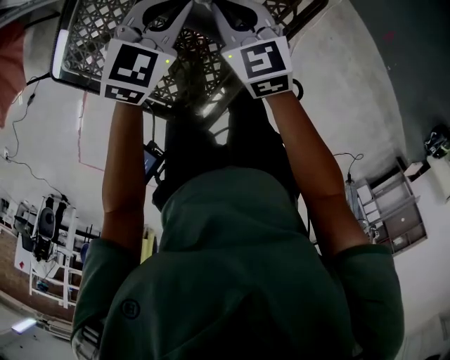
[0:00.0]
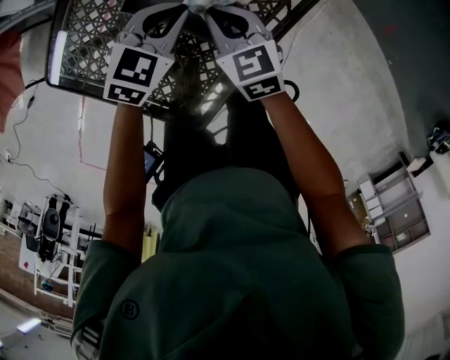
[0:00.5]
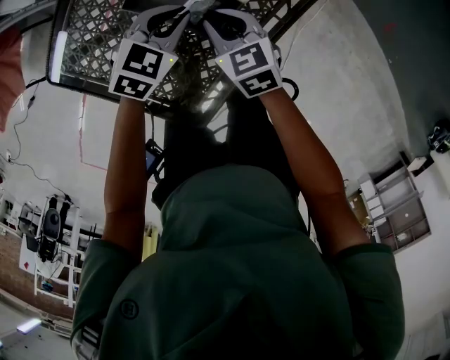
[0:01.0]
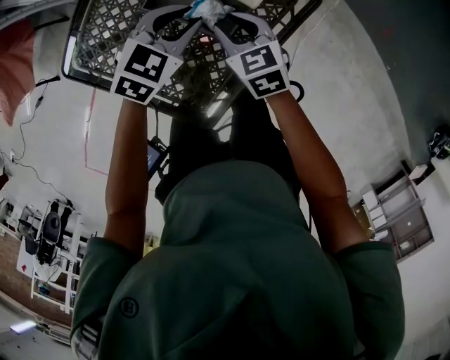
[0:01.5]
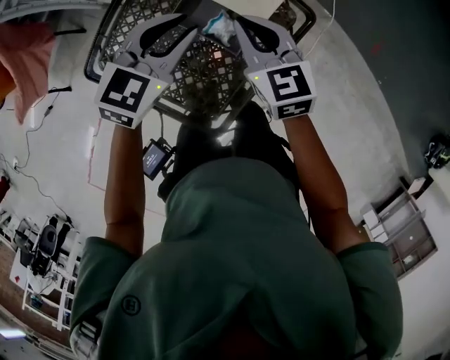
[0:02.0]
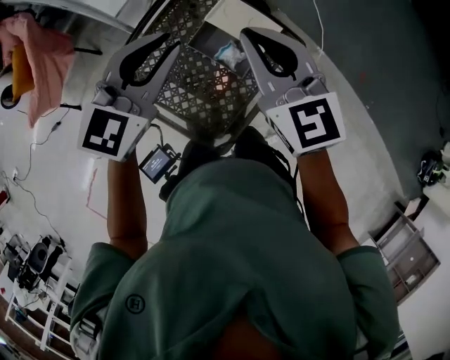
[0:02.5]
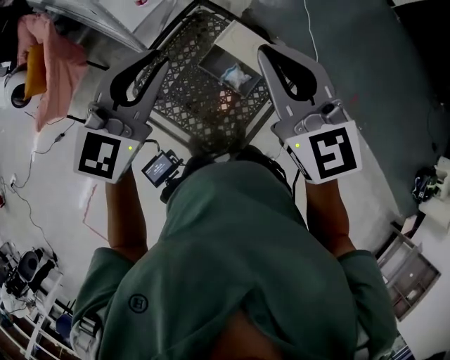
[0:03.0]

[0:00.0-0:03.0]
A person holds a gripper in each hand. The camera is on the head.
0:00.0 to 0:01.5: The right gripper travels backward by roughly 5 cm, and opens. Meanwhile the left gripper opens its fingers.
0:01.5 to 0:03.0: The grippers both shift upward by roughly 50 cm. The left gripper points its fingers approximately 40 degrees further upward; the right gripper angles its fingers upward, by approximately 40 degrees, and closes up.

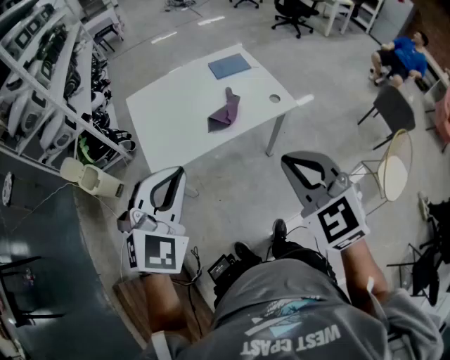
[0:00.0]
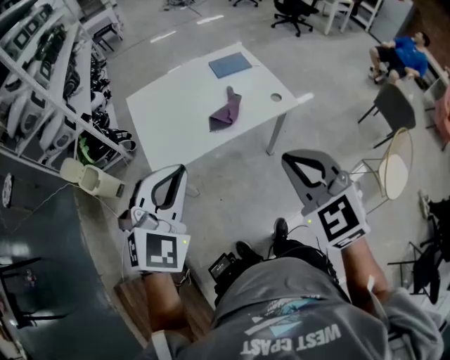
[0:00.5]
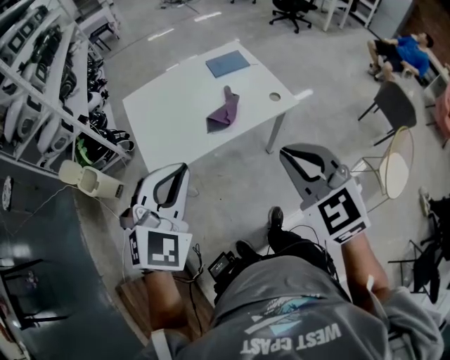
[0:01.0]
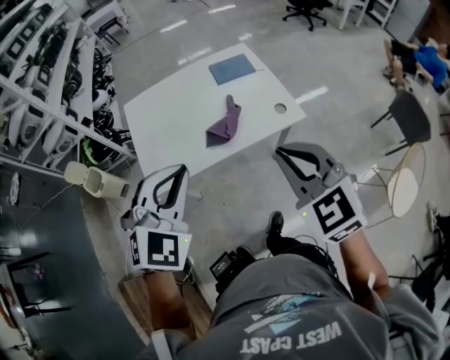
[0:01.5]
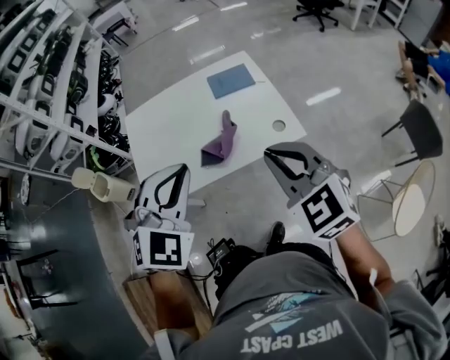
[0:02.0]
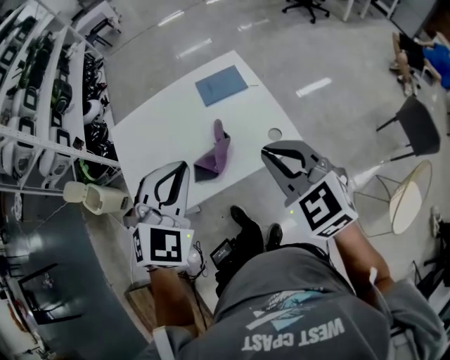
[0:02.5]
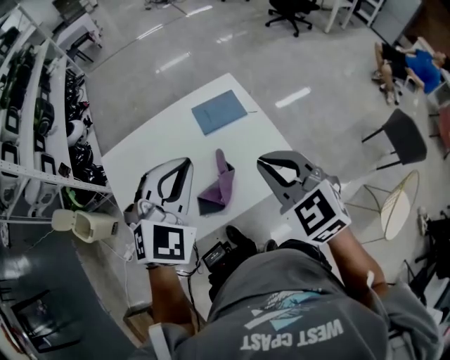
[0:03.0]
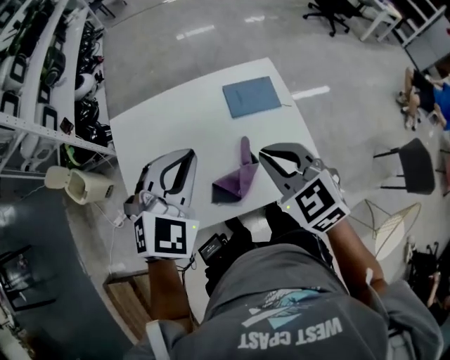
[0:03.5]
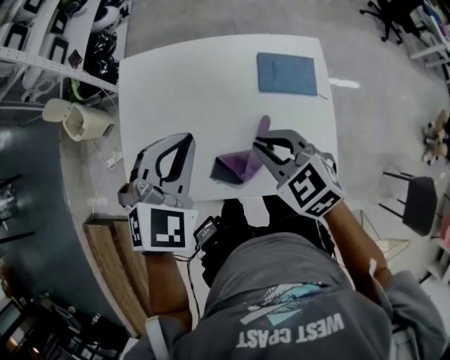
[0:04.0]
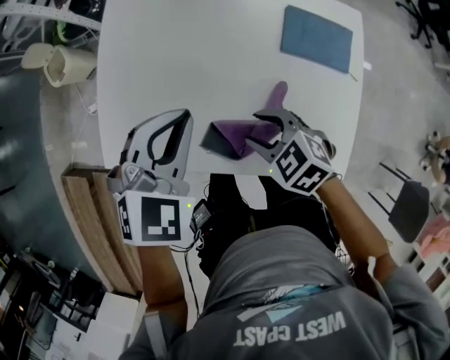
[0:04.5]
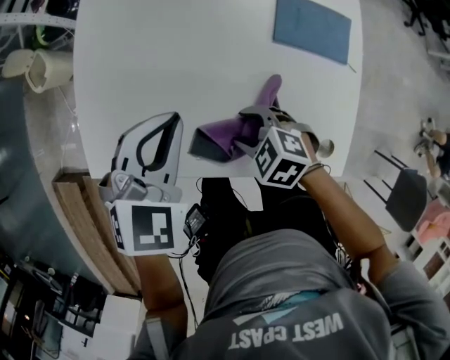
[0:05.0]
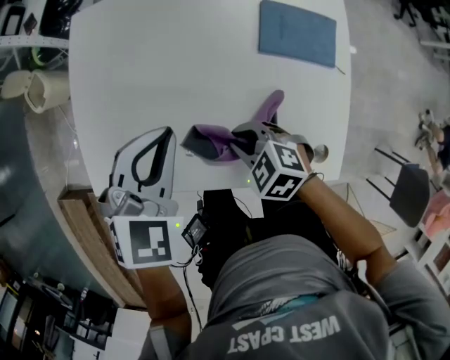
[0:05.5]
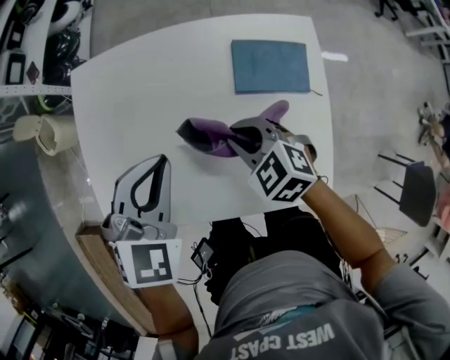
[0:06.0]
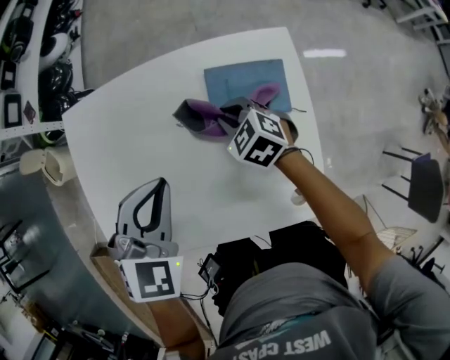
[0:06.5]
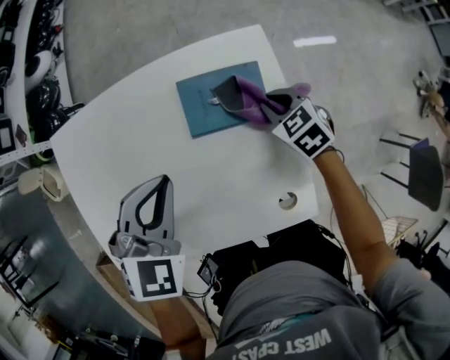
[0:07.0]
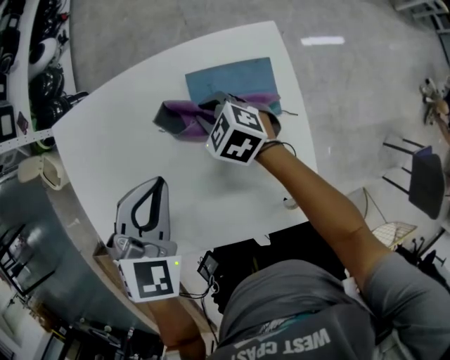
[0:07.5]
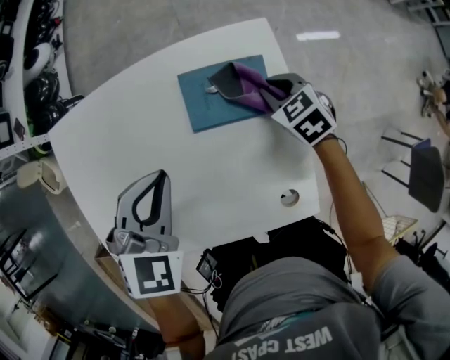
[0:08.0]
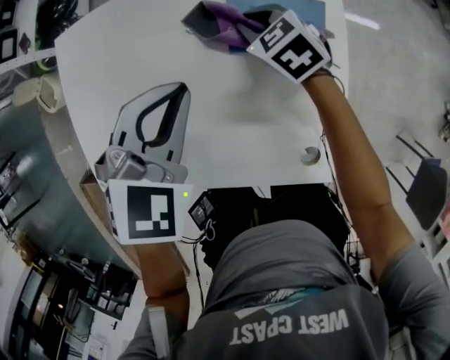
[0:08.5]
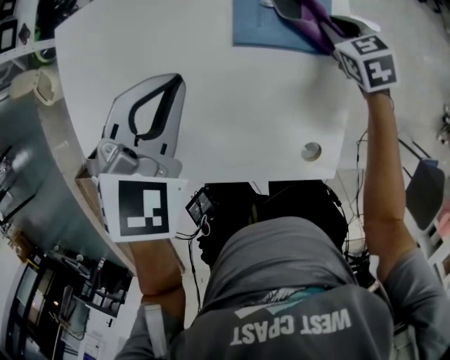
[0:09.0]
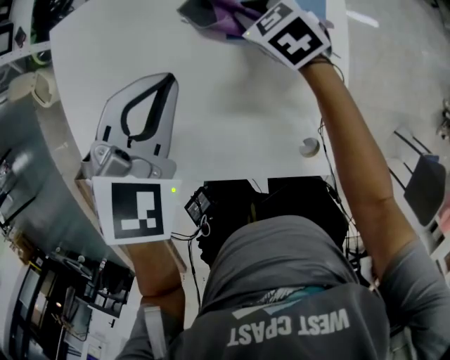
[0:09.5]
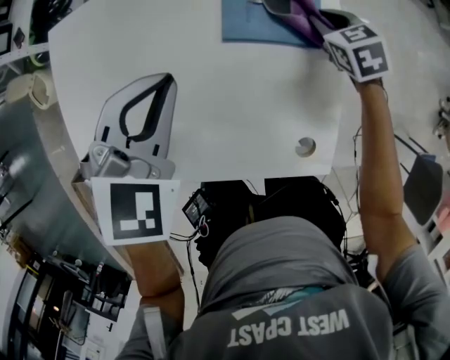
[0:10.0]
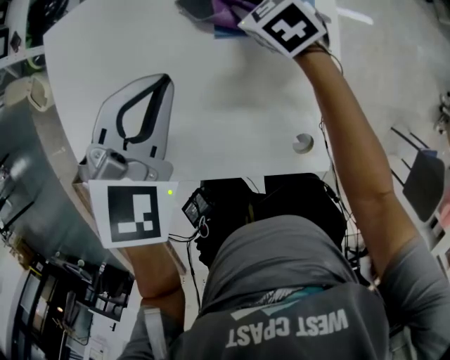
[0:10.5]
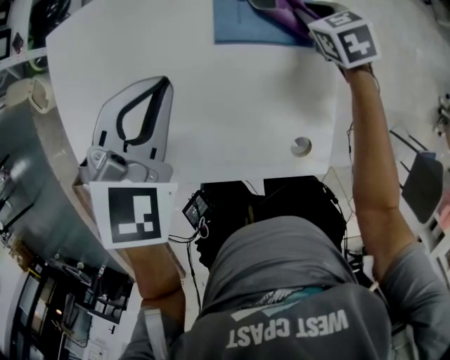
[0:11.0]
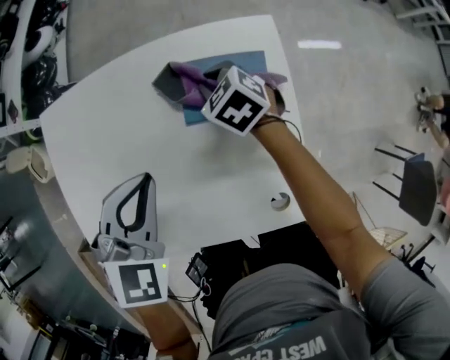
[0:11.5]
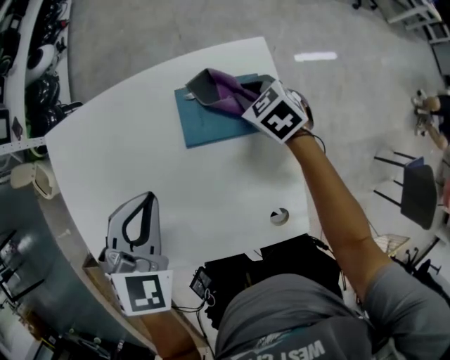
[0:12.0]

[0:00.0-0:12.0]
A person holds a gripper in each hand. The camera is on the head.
0:00.0 to 0:02.0: Both grippers travel together forward and to the right, approximately 25 cm.
0:02.0 to 0:04.0: The left gripper ends up approximately 30 cm from where it was, and rotates roughly 20 degrees; the right gripper moves roughly 35 cm, and swivels some 30 degrees.
0:04.0 to 0:06.0: Both grippers move downward and forward, approximately 15 cm. The right gripper opens and closes again.
0:06.0 to 0:08.0: The right gripper swings left and right, about 25 cm each way, with 2 reversals, and changes its angle by about 30 degrees. Meanwhile the left gripper goes some 15 cm to the right and forward.
0:08.0 to 0:10.0: The right gripper goes left and right, approximately 15 cm each way, reversing 3 times.
0:10.0 to 0:12.0: The right gripper moves left and right over approximately 15 cm, changing direction 3 times.

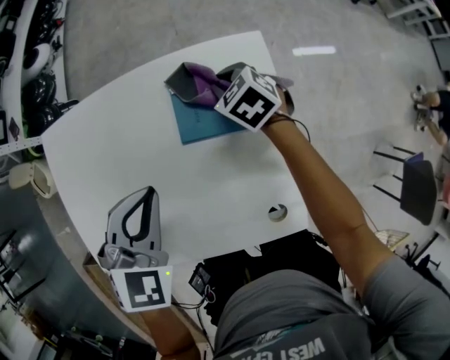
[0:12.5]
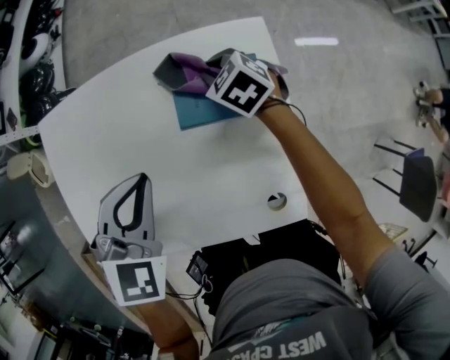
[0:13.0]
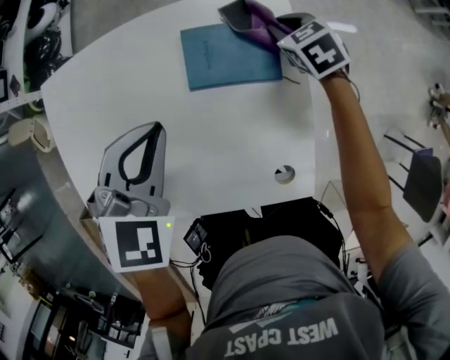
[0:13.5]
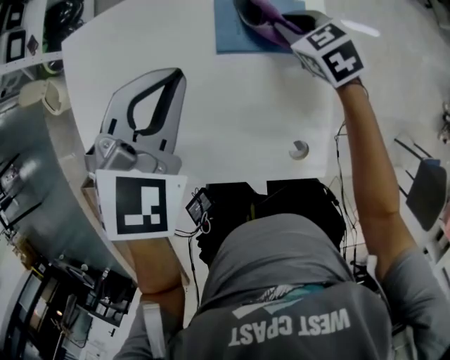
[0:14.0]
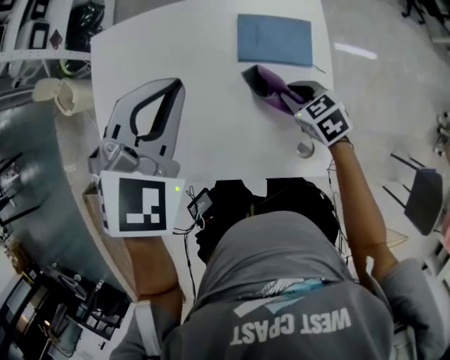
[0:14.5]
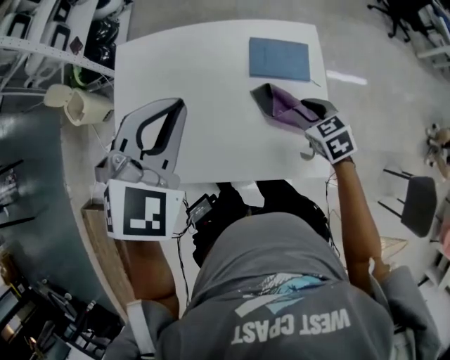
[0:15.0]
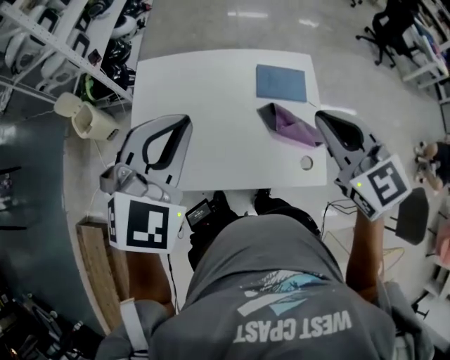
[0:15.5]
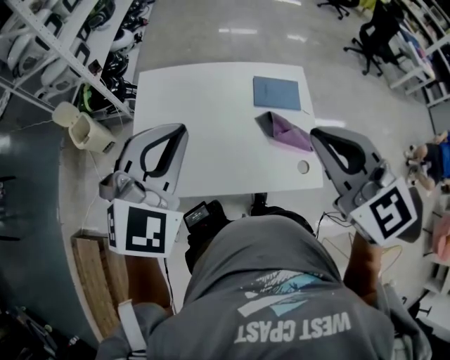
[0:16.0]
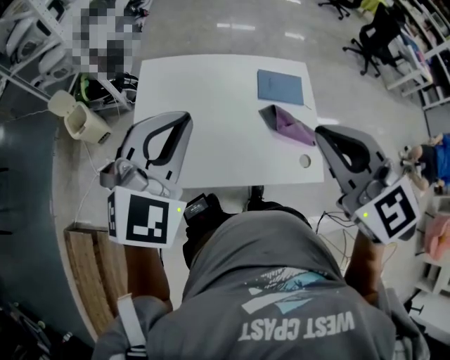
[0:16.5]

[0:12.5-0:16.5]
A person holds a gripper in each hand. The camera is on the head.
0:12.5 to 0:14.5: The right gripper shifts some 20 cm backward, while the left gripper travels upward by approximately 10 cm.
0:14.5 to 0:16.5: The right gripper goes about 50 cm upward and backward, and points its fingers roughly 30 degrees further upward. The left gripper is displaced backward, to the left and upward by about 30 cm, and changes its angle by roughly 20 degrees.

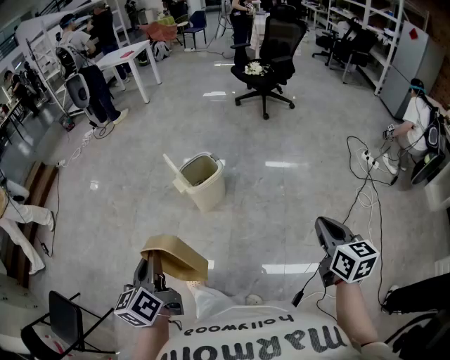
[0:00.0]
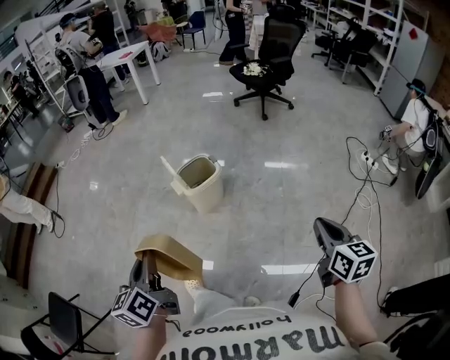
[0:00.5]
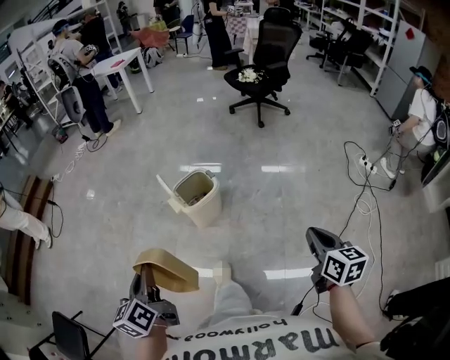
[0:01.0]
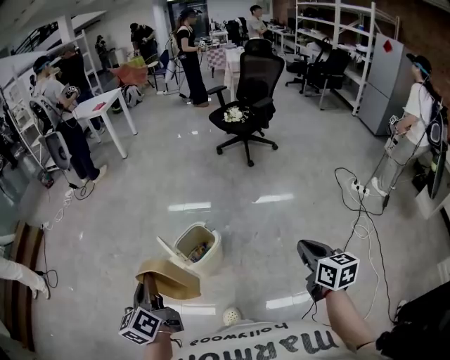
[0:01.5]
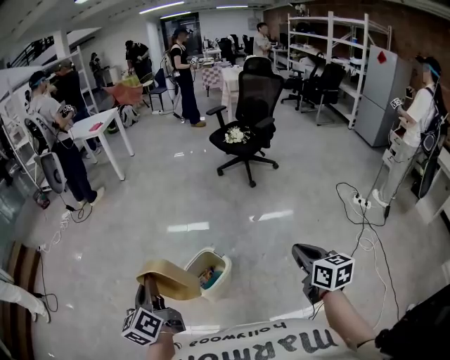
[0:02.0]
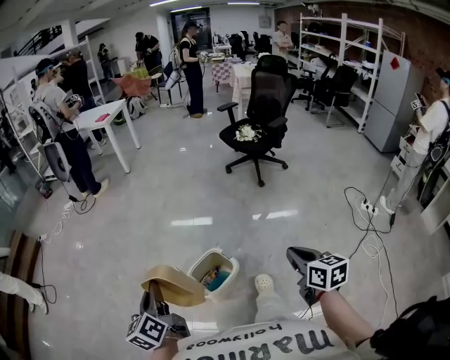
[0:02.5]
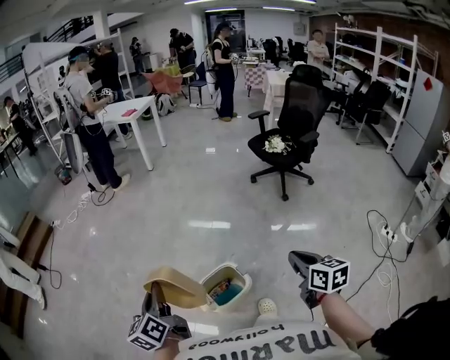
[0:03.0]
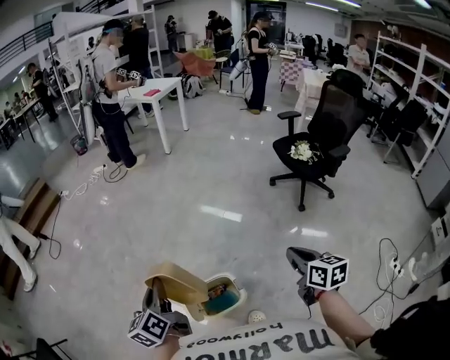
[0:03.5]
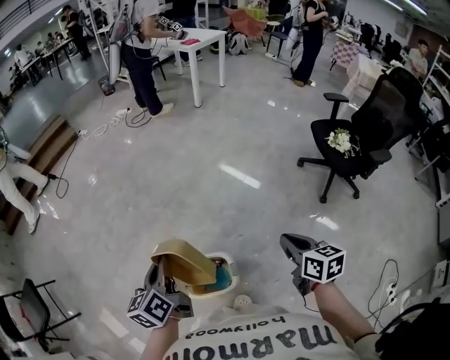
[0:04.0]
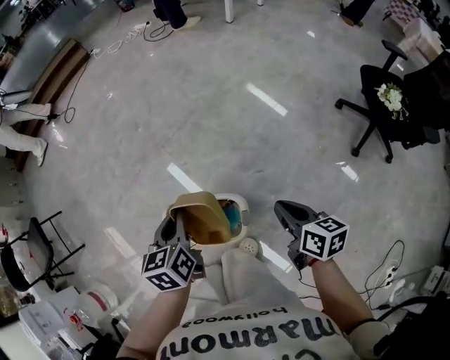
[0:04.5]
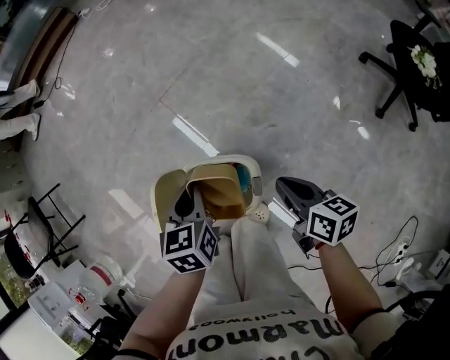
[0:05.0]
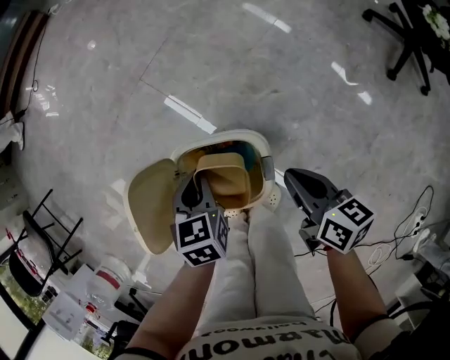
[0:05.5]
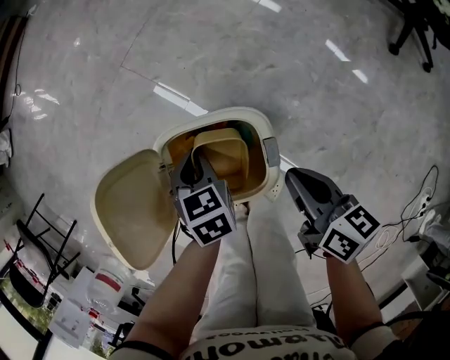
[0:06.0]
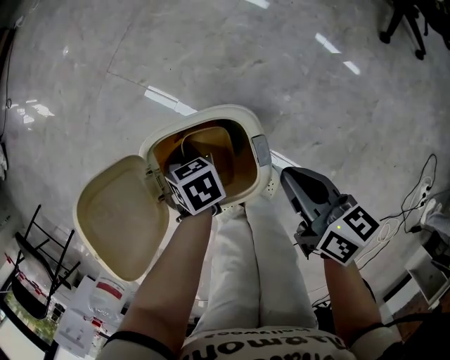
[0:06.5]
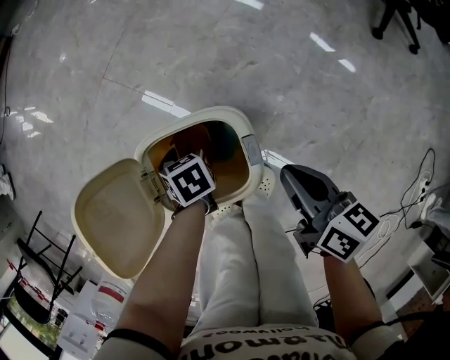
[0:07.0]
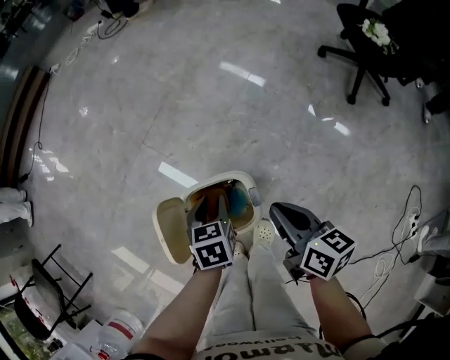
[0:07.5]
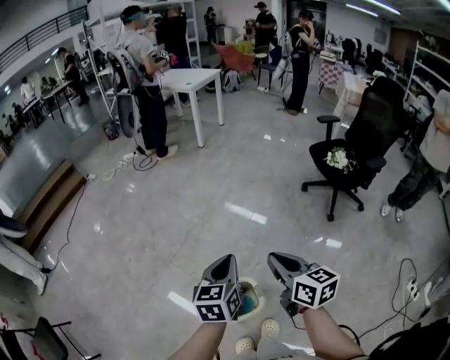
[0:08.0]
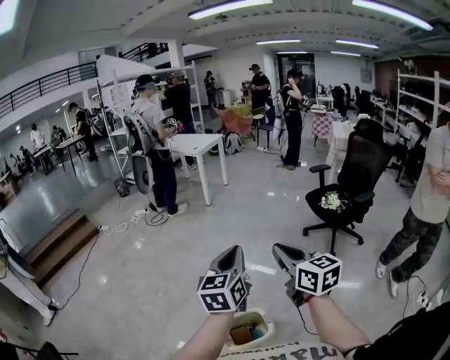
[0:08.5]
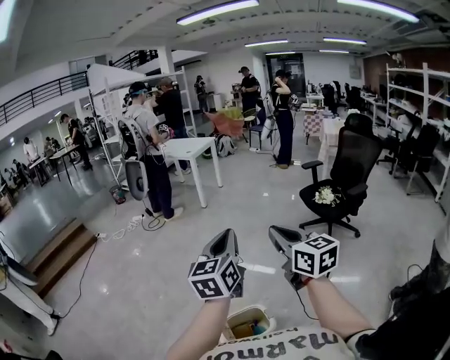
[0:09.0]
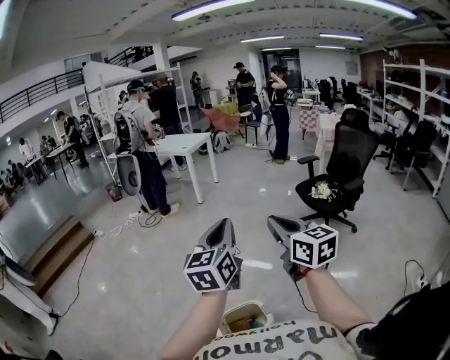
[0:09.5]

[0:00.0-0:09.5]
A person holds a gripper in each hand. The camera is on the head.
0:00.0 to 0:02.0: The grippers both shift forward by about 35 cm.
0:02.0 to 0:04.0: The left gripper ends up roughly 20 cm from where it was, and turns by about 30 degrees. Meanwhile the right gripper moves roughly 40 cm, and swivels roughly 40 degrees.
0:04.0 to 0:05.5: The left gripper is displaced downward by some 35 cm, and angles its fingers downward, by about 40 degrees, while the right gripper goes about 35 cm downward and to the left, and turns by about 20 degrees.
0:05.5 to 0:07.5: The left gripper heads to the right, covering some 5 cm, goes downward and returns, about 20 cm each way, and opens, while the right gripper moves upward, some 10 cm.
0:07.5 to 0:09.5: Both grippers move upward, about 50 cm. The left gripper points its fingers some 60 degrees further upward, and closes its fingers, while the right gripper changes its angle by about 40 degrees.
